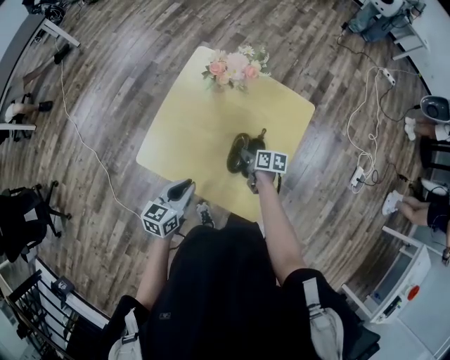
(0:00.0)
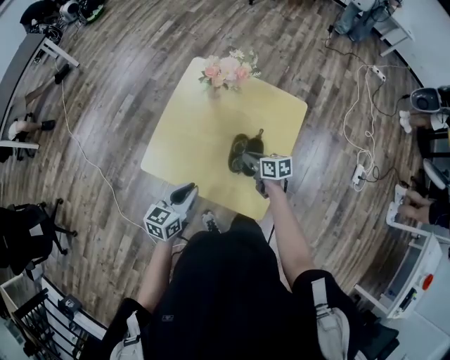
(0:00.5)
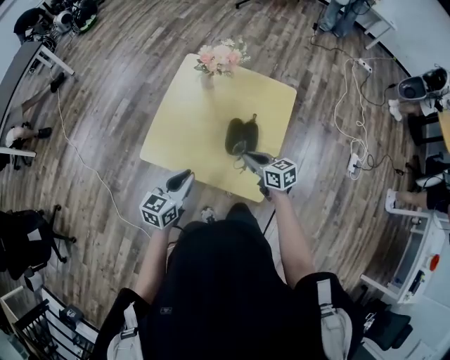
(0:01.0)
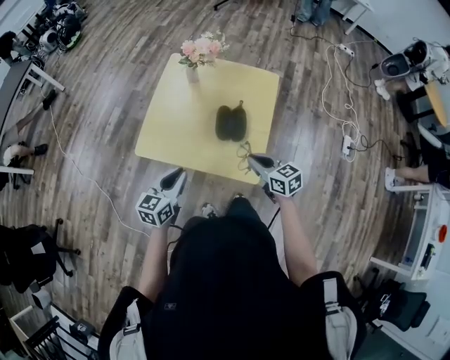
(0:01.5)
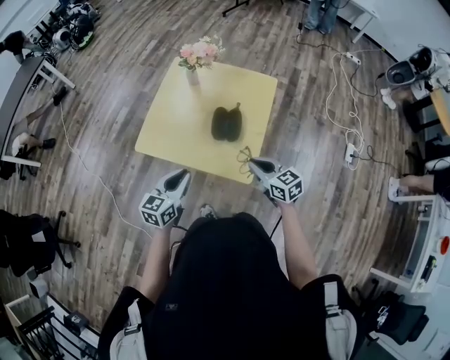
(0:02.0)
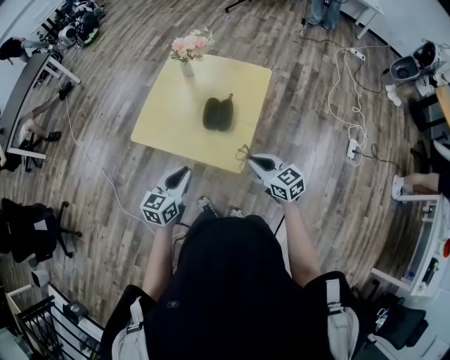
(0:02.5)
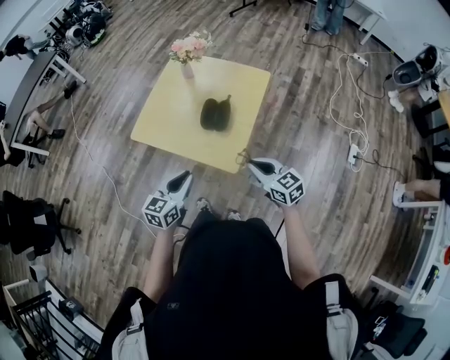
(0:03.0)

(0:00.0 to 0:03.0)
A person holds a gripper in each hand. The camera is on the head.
0:00.0 - 0:01.5: The left gripper shifts approximately 15 cm backward. The right gripper shifts about 30 cm backward and upward, and changes its angle by some 40 degrees.
0:01.5 - 0:03.0: The right gripper moves backward and to the right, roughly 15 cm, while the left gripper is displaced to the right and backward by approximately 20 cm.

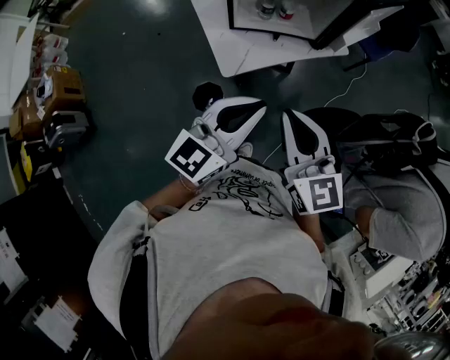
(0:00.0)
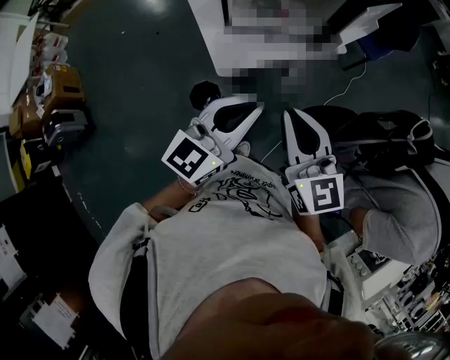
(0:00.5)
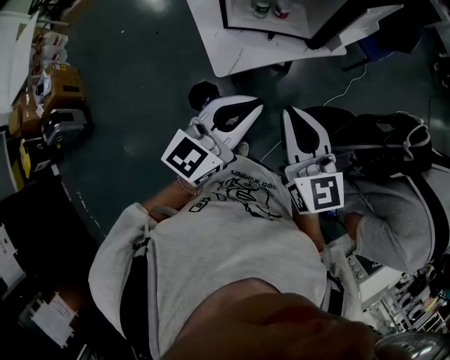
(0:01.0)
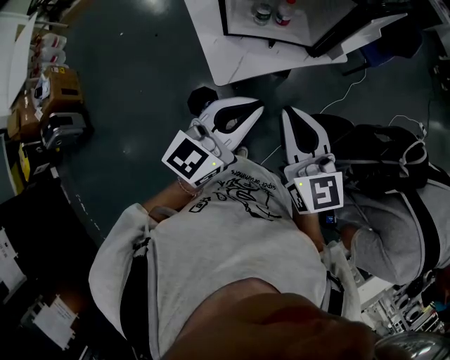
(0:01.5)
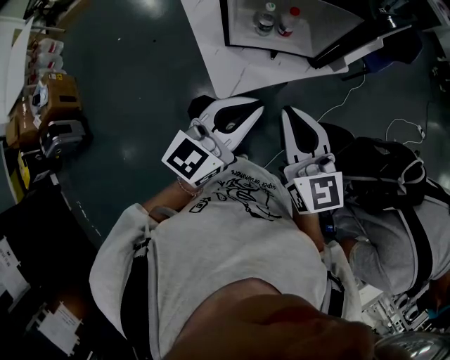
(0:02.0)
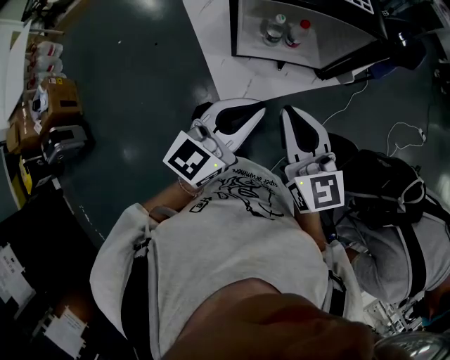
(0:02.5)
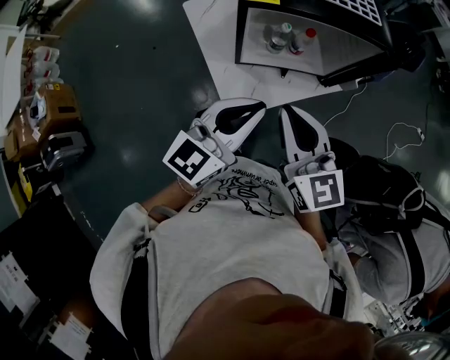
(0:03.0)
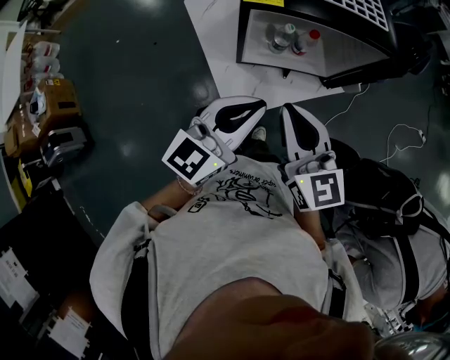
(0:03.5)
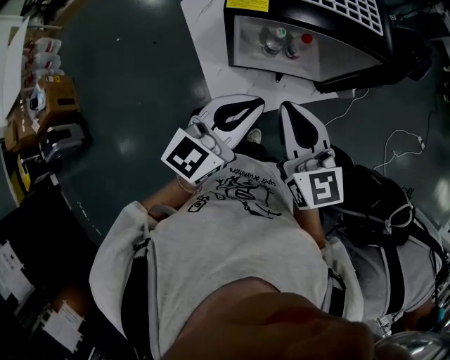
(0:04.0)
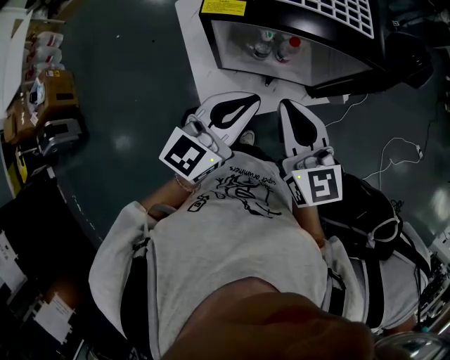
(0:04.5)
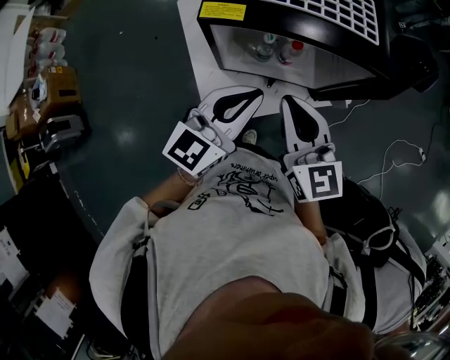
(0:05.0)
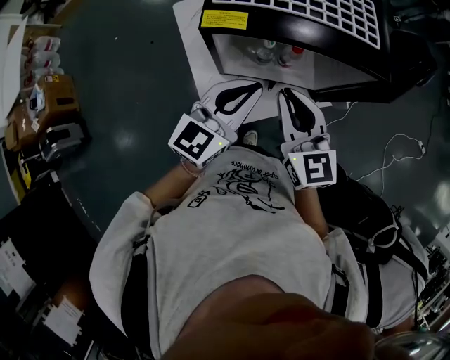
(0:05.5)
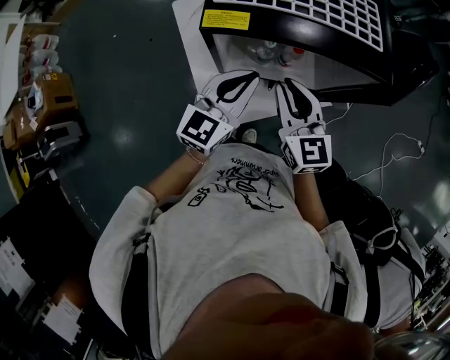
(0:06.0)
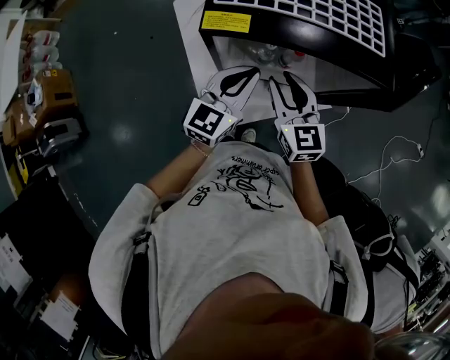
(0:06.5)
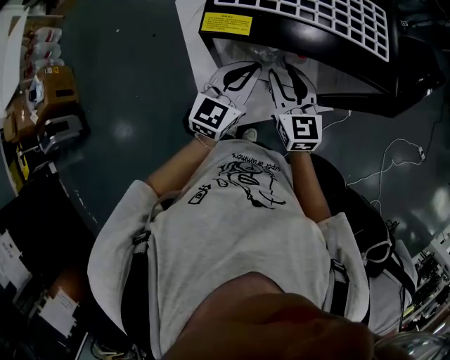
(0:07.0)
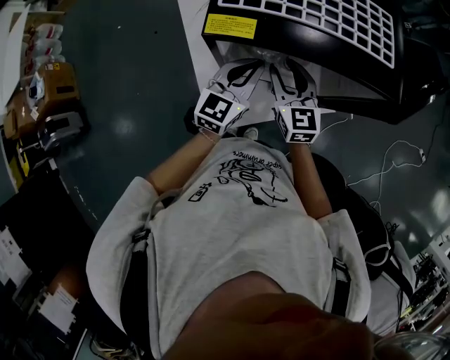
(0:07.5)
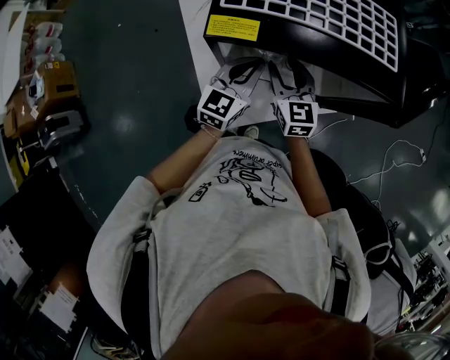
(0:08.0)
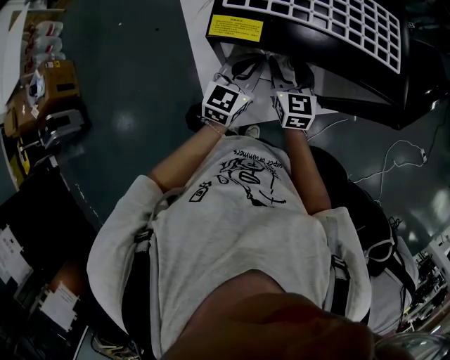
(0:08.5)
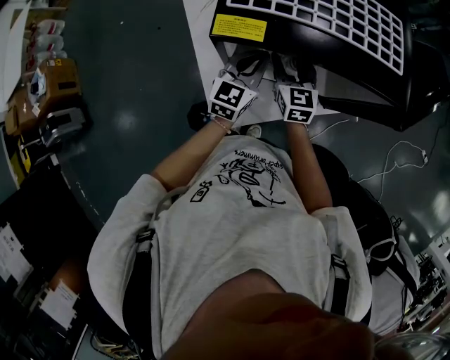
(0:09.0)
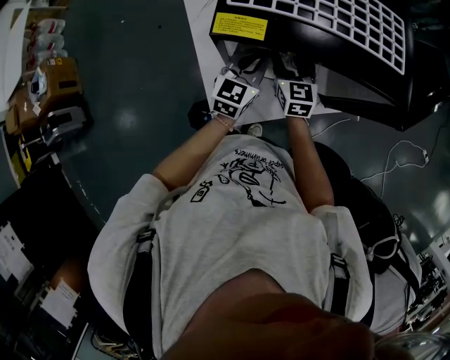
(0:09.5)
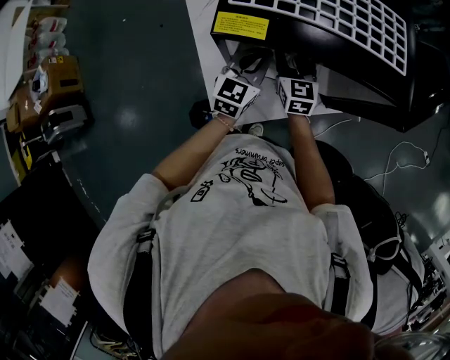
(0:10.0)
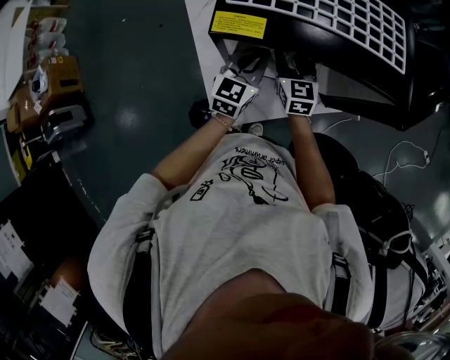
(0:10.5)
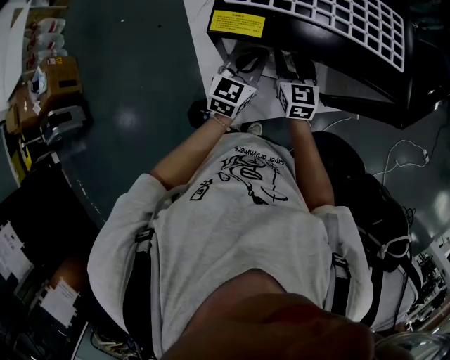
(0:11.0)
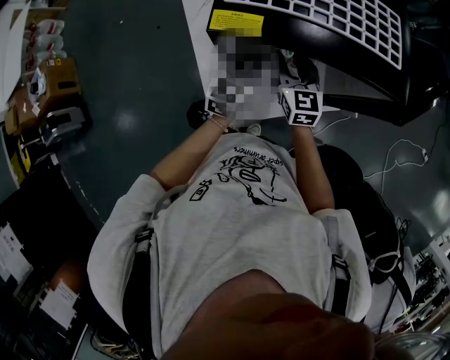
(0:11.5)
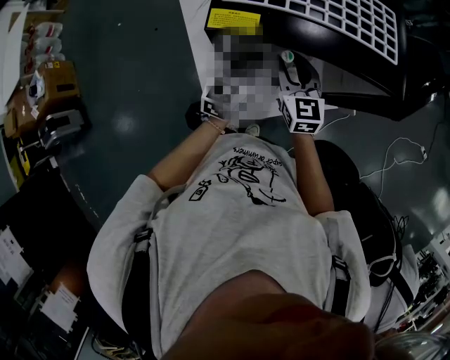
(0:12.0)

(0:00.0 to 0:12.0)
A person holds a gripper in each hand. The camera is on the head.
0:00.0 - 0:02.0: The two grippers go some 10 cm forward.
0:02.0 - 0:04.0: The grippers both shift forward by about 15 cm.
0:04.0 - 0:06.0: The grippers both shift forward and downward by approximately 15 cm.
0:06.0 - 0:08.0: The grippers both shift downward and forward by some 15 cm. The right gripper opens its fingers.
0:08.0 - 0:10.0: The right gripper goes some 5 cm forward.
0:10.0 - 0:12.0: The right gripper travels backward by about 5 cm.

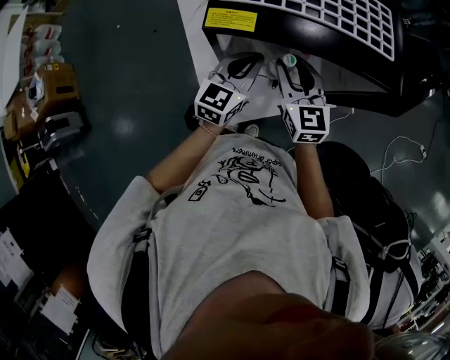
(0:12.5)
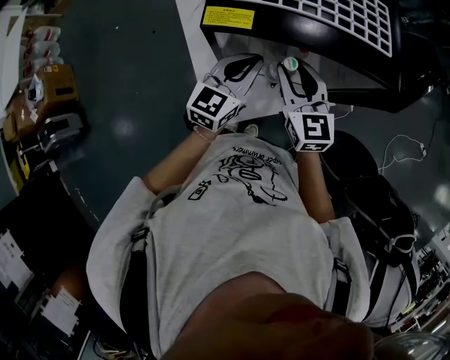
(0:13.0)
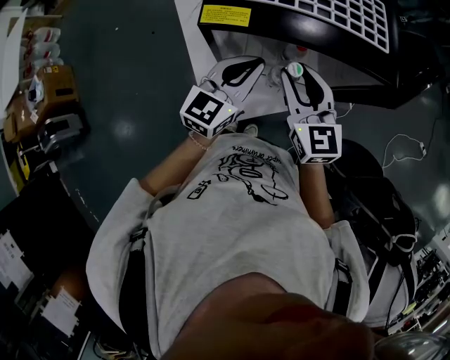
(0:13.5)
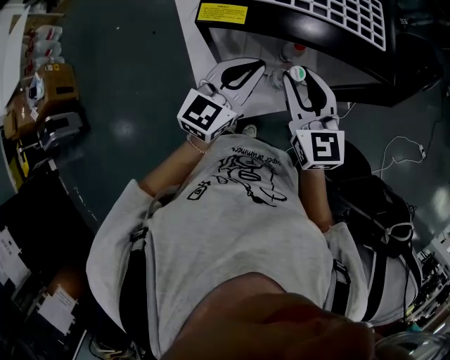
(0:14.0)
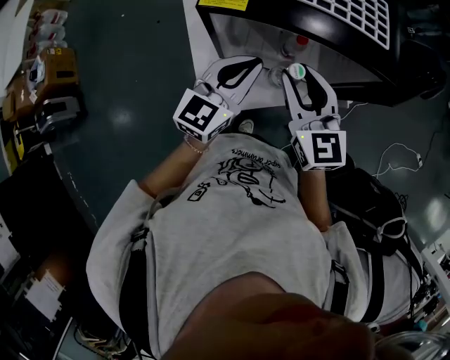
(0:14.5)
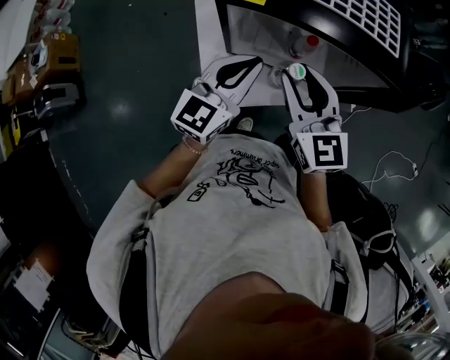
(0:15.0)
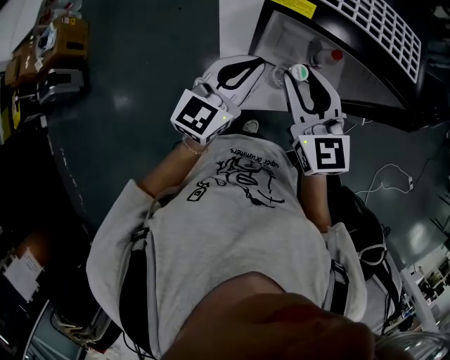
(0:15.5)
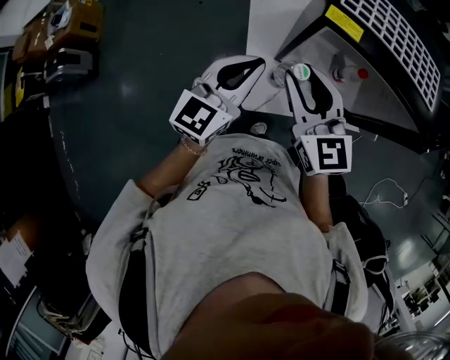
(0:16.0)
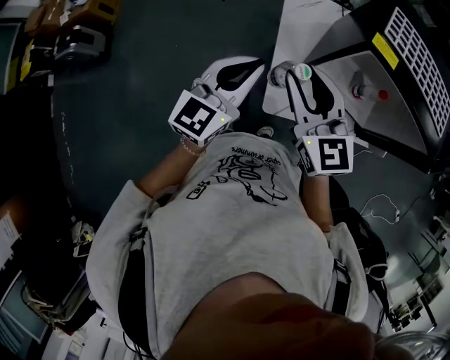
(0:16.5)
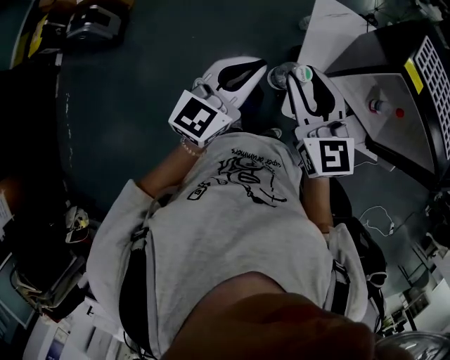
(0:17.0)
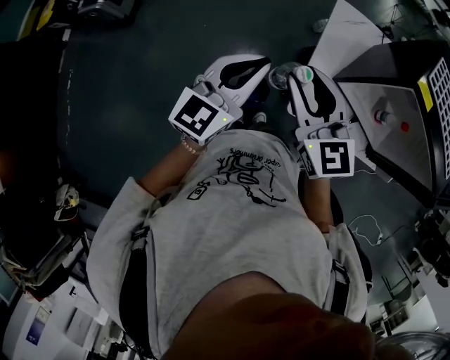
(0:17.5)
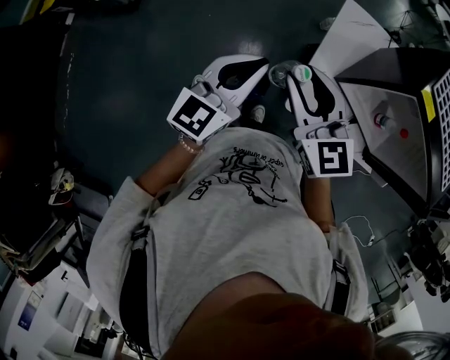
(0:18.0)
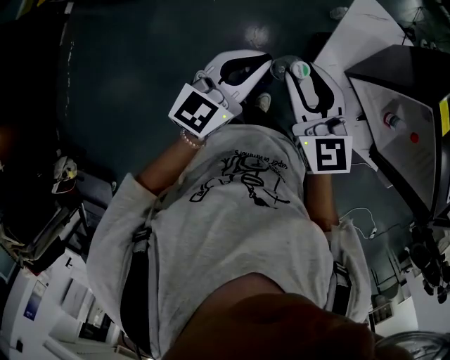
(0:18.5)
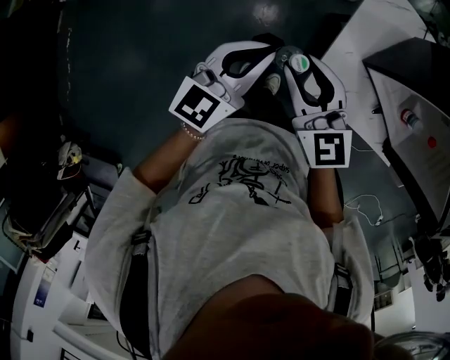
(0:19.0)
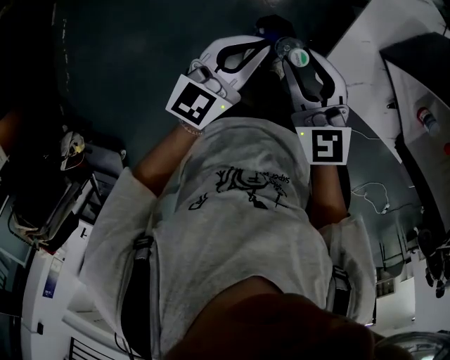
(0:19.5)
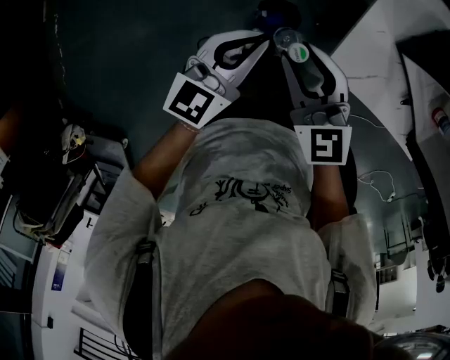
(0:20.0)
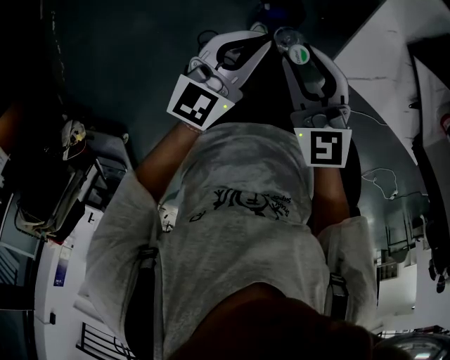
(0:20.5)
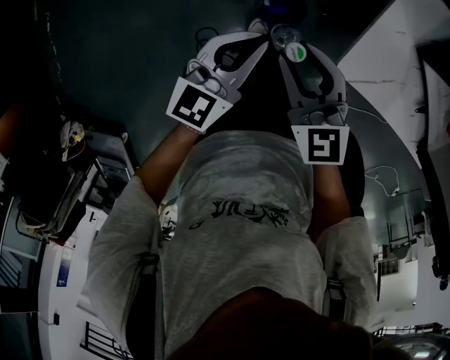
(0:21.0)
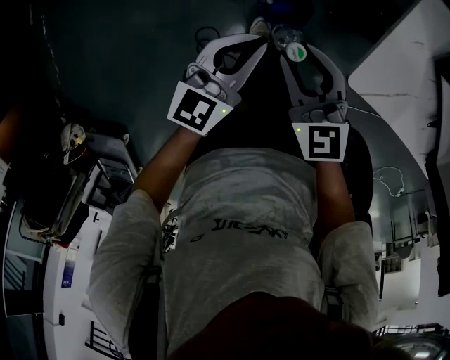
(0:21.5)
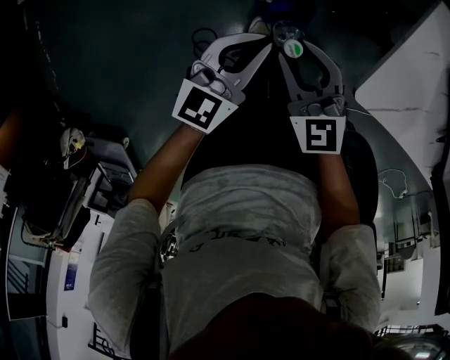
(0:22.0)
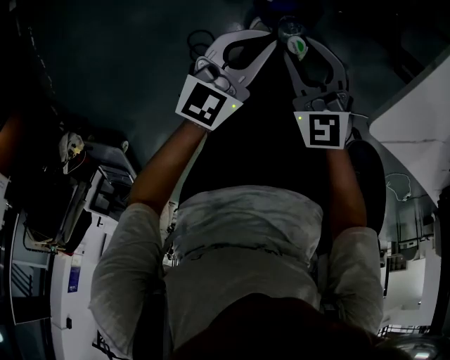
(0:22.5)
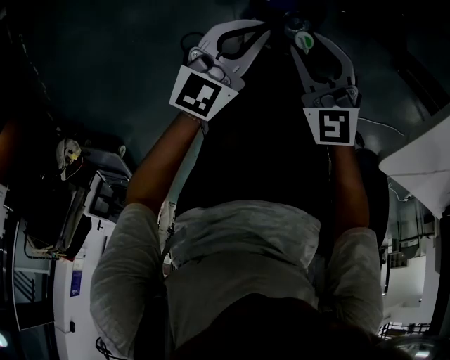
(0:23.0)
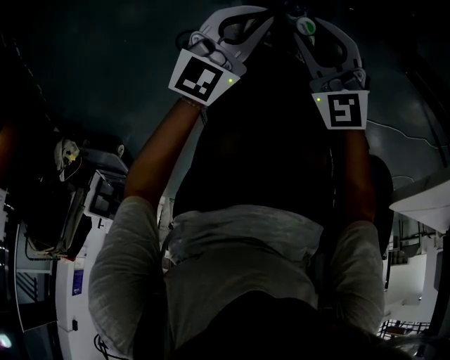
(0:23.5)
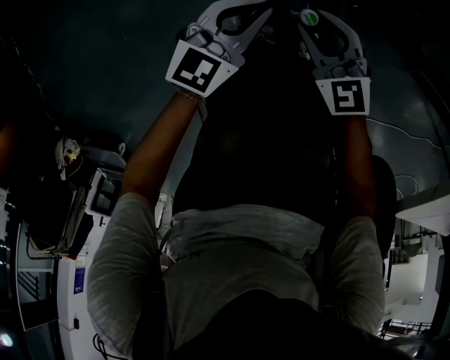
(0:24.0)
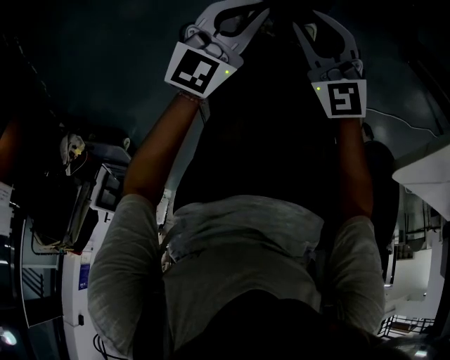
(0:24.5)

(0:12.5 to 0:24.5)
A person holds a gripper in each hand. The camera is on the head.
0:12.5 - 0:14.5: The grippers both shift upward and backward by roughly 10 cm.
0:14.5 - 0:16.5: The two grippers go some 30 cm to the left. The right gripper swivels approximately 20 degrees.
0:16.5 - 0:18.5: Both grippers travel together to the left and downward, roughly 15 cm. The right gripper turns by roughly 20 degrees.
0:18.5 - 0:20.5: The two grippers go some 20 cm downward.
0:20.5 - 0:22.5: Both grippers travel together downward, about 25 cm.
0:22.5 - 0:24.5: Both grippers move downward, some 15 cm.
